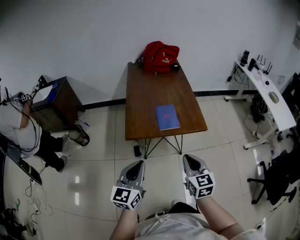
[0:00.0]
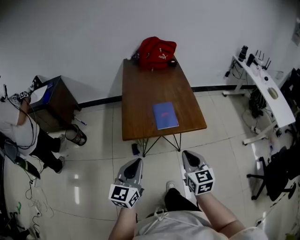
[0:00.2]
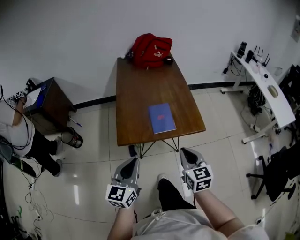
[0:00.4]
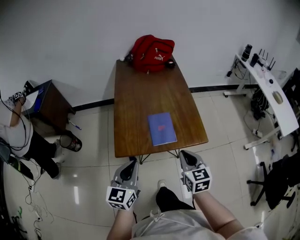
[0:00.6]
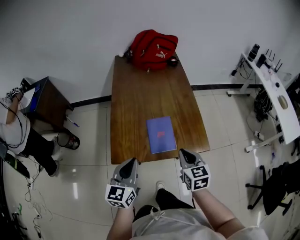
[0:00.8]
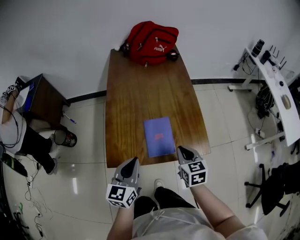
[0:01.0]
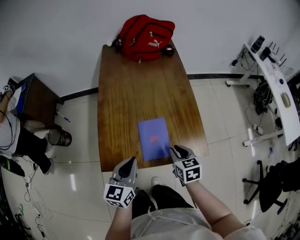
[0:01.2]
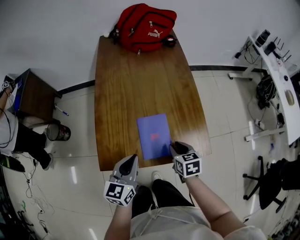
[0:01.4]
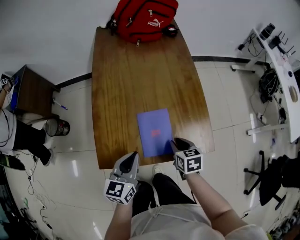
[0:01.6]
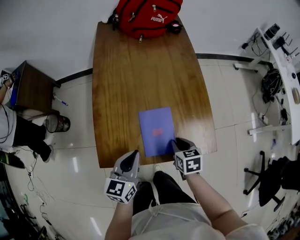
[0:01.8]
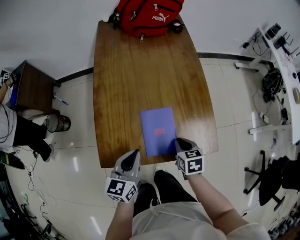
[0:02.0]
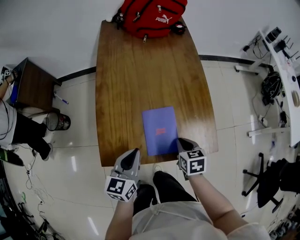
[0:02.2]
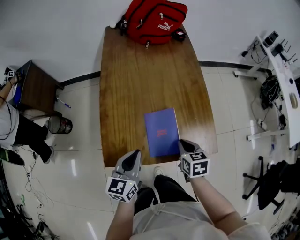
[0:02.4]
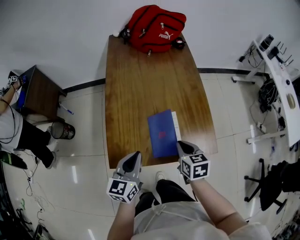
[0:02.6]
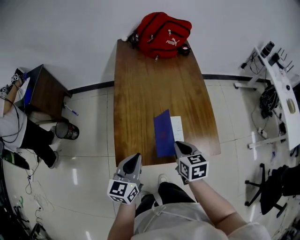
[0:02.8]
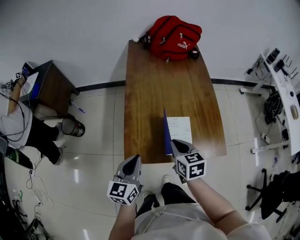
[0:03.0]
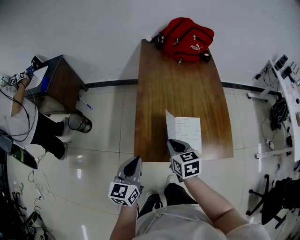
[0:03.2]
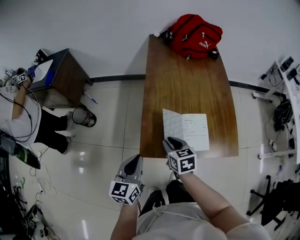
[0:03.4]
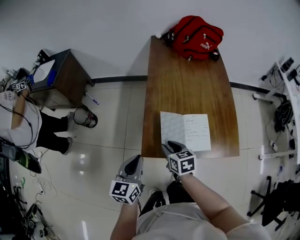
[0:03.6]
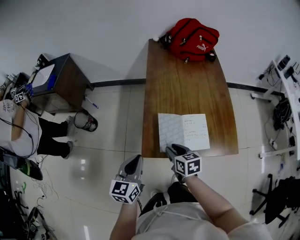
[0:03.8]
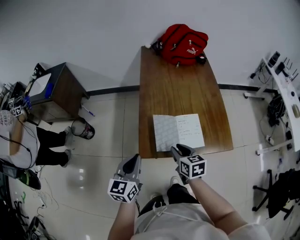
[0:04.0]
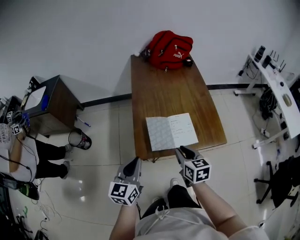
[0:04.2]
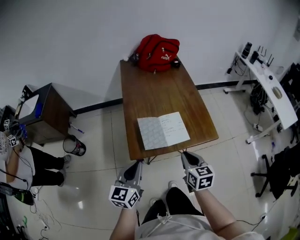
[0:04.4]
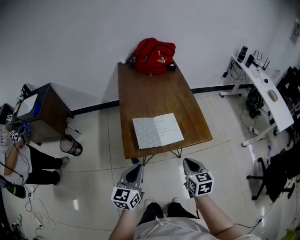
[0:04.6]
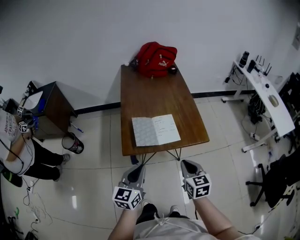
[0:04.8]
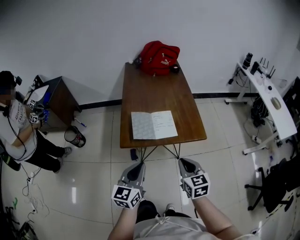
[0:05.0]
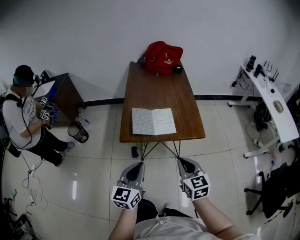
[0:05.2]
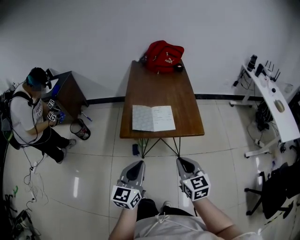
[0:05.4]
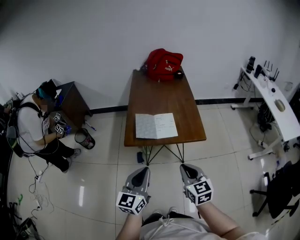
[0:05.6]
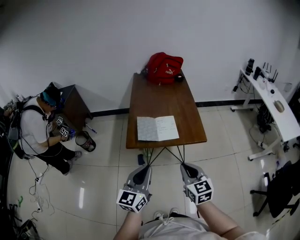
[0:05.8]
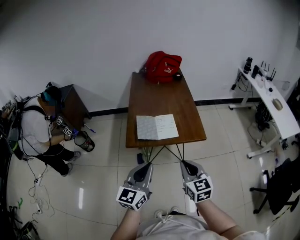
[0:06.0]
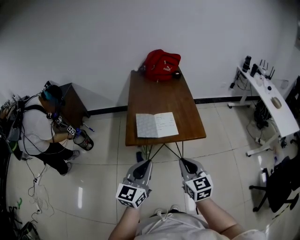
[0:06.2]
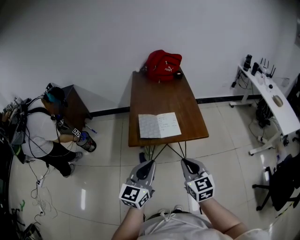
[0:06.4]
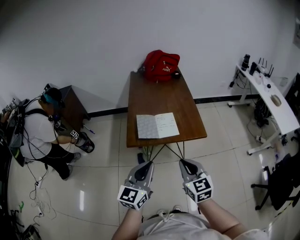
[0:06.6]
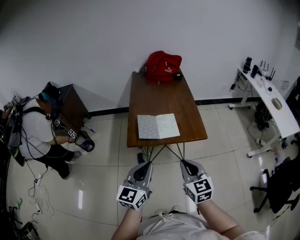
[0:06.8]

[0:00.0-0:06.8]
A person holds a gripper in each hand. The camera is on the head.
0.0 to 1.4 s: Both grippers move forward and downward, roughly 35 cm. The right gripper changes its angle by some 30 degrees, and opens up.
1.4 to 2.8 s: The left gripper shifts about 5 cm to the left. Meanwhile the right gripper moves upward and to the left, some 10 cm, and closes.
2.8 to 4.0 s: Both grippers travel together to the left, approximately 15 cm. The right gripper opens its fingers.
4.0 to 5.4 s: The left gripper goes approximately 30 cm backward and to the right. The right gripper moves backward, to the right and upward, approximately 35 cm, changes its angle by roughly 20 degrees, and closes up.
5.4 to 6.8 s: The right gripper ends up about 5 cm from where it was.

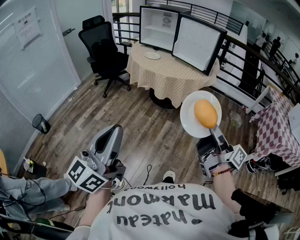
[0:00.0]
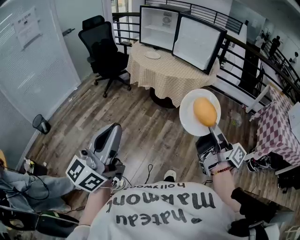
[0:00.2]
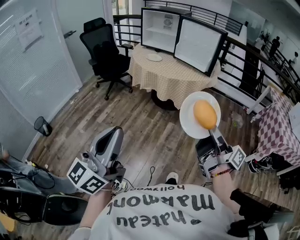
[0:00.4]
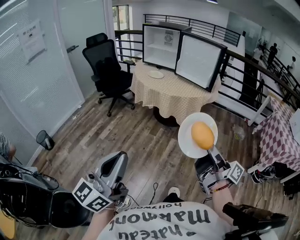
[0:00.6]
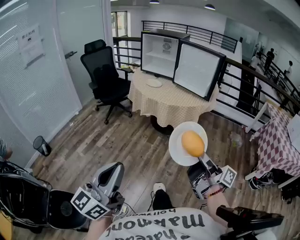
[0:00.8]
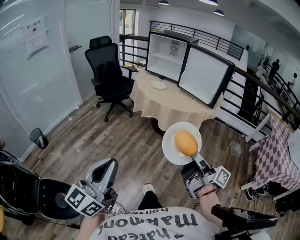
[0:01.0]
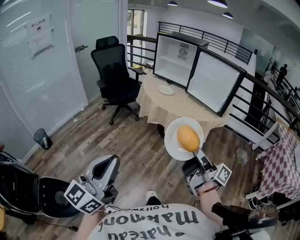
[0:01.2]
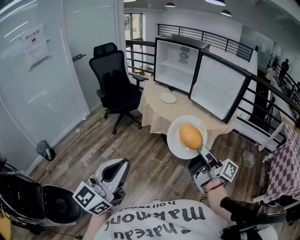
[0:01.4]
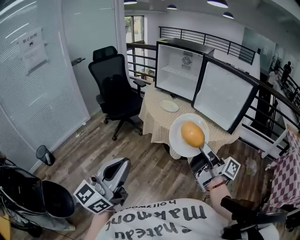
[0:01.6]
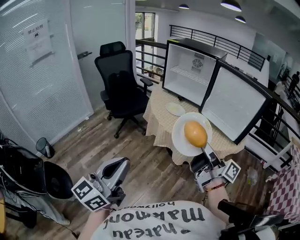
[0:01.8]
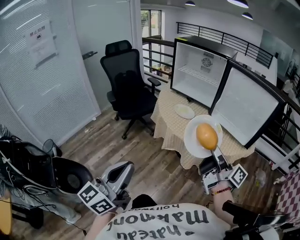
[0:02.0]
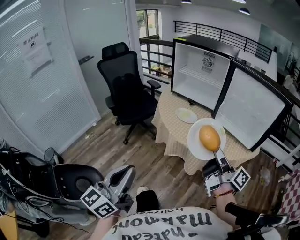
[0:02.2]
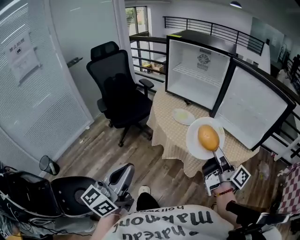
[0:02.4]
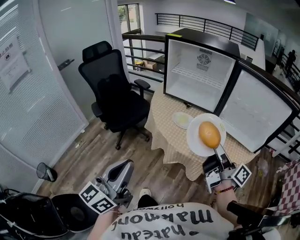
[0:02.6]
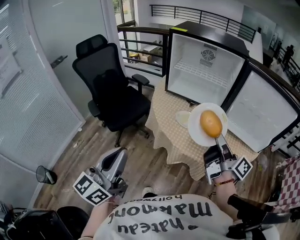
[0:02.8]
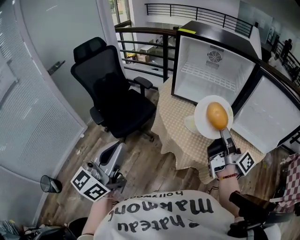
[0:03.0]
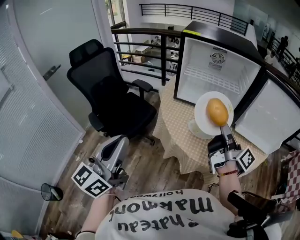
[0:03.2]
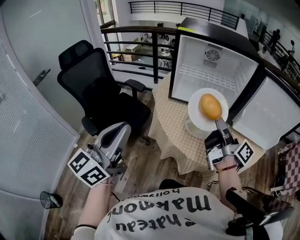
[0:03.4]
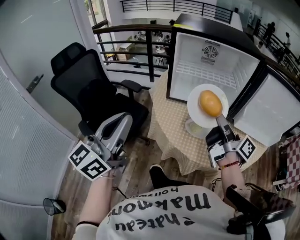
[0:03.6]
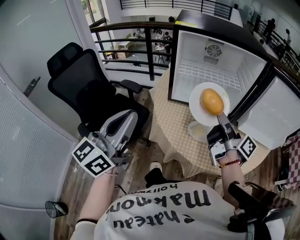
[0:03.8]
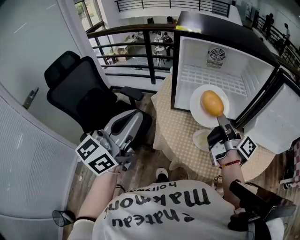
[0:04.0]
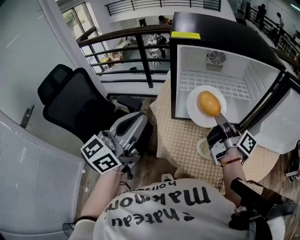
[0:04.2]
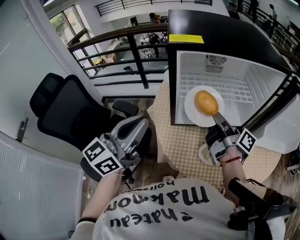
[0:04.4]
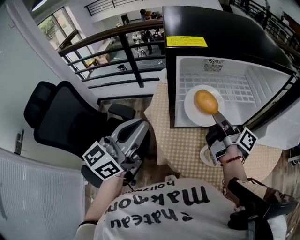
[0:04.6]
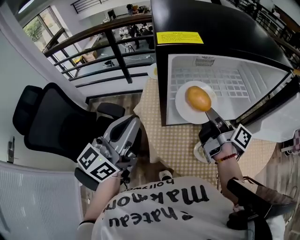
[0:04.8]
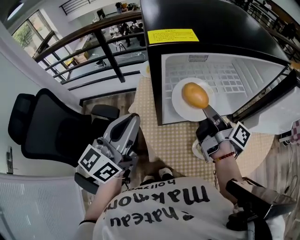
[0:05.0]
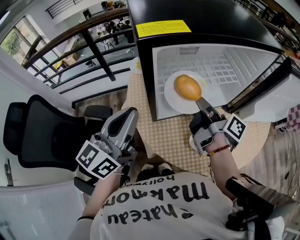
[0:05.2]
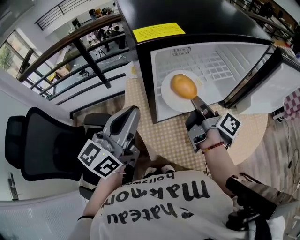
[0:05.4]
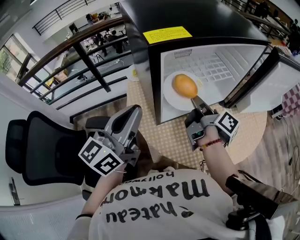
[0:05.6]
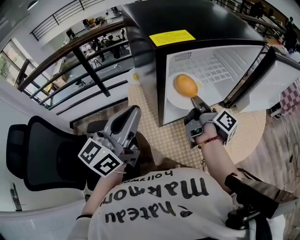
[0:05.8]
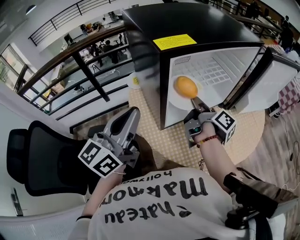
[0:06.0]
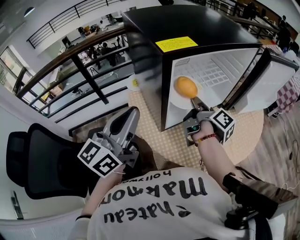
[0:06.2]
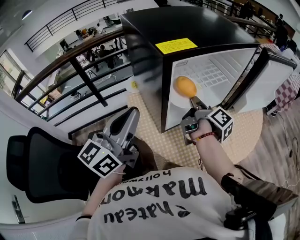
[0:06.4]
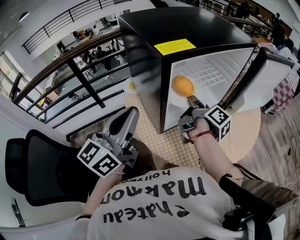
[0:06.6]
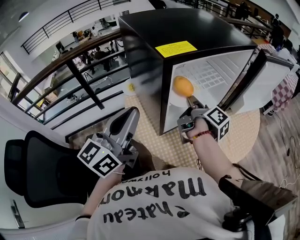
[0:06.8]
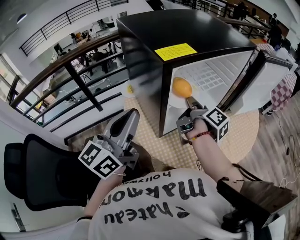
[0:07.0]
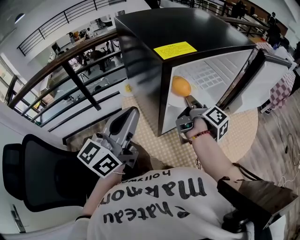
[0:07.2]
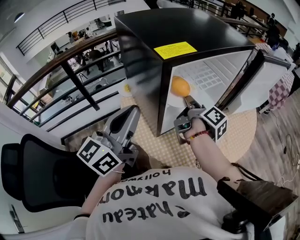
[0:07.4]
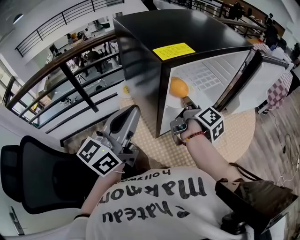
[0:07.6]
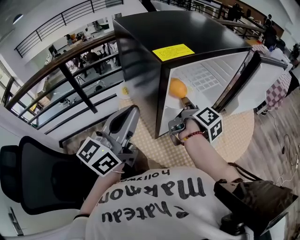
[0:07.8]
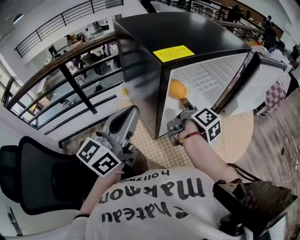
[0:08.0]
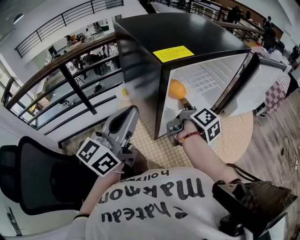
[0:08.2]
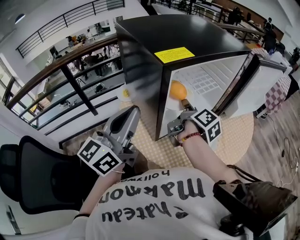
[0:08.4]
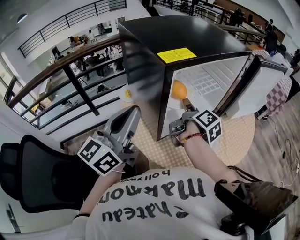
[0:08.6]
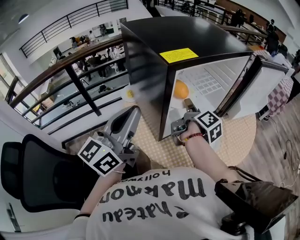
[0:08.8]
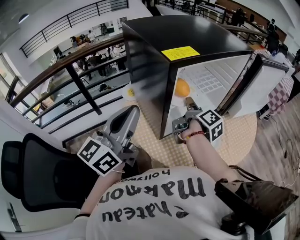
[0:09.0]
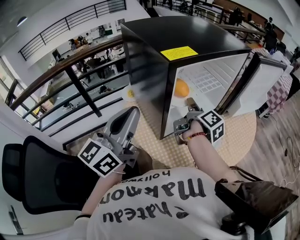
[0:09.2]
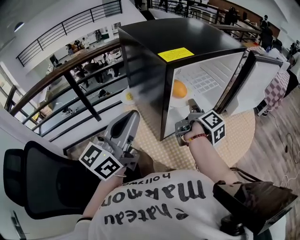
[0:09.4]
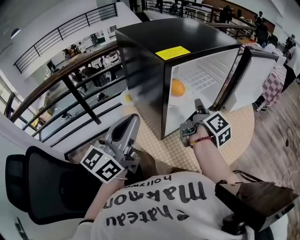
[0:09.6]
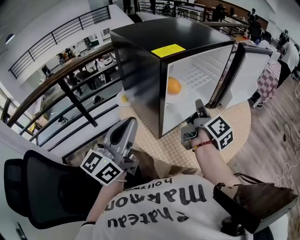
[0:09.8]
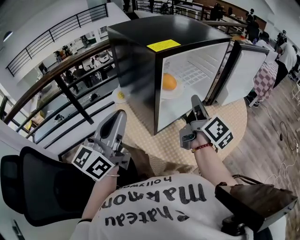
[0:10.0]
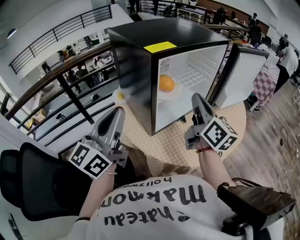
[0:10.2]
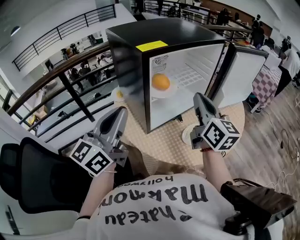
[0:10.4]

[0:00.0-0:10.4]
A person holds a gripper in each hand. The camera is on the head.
0.0 to 1.4 s: The right gripper shifts some 30 cm forward and to the left. The left gripper is displaced forward by some 20 cm.
1.4 to 3.0 s: The two grippers travel together, forward, roughly 50 cm. The right gripper turns by approximately 30 degrees.
3.0 to 4.4 s: The left gripper shifts approximately 40 cm forward, and swivels some 30 degrees. Meanwhile the right gripper shifts roughly 30 cm forward and to the left.
4.4 to 6.0 s: The left gripper is displaced forward by some 10 cm, while the right gripper changes its angle by some 40 degrees.
6.0 to 7.4 s: The grippers stay close to where they were, moving slightly.
7.4 to 9.0 s: The right gripper opens.
9.0 to 10.4 s: The right gripper shifts some 20 cm upward, backward and to the right, rotates around the line of its fingers by some 60 degrees, counterclockwise from behind, and closes up, while the left gripper shifts by some 5 cm.

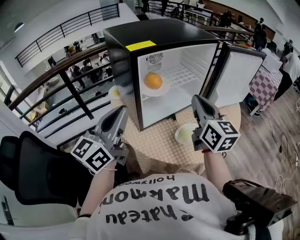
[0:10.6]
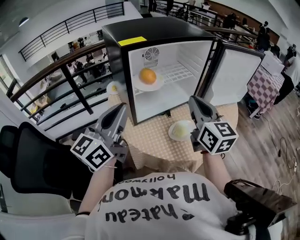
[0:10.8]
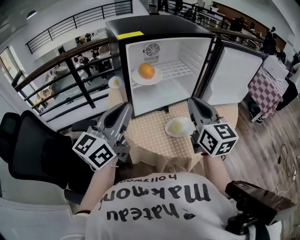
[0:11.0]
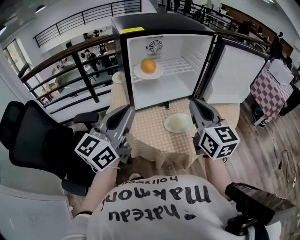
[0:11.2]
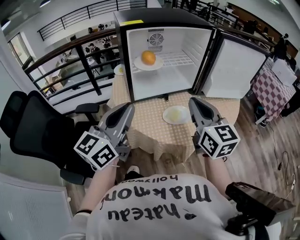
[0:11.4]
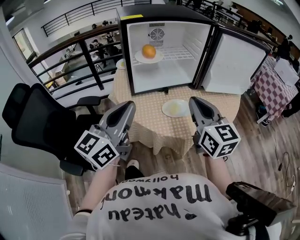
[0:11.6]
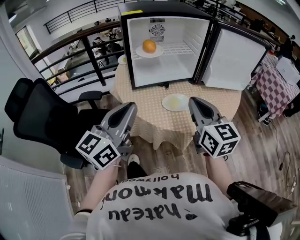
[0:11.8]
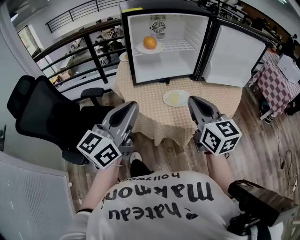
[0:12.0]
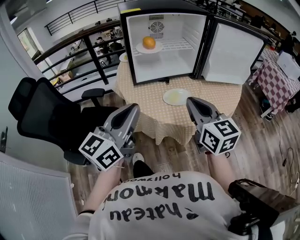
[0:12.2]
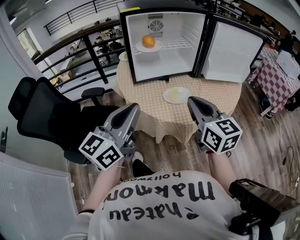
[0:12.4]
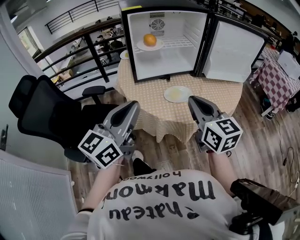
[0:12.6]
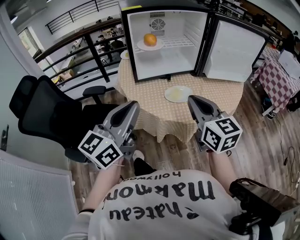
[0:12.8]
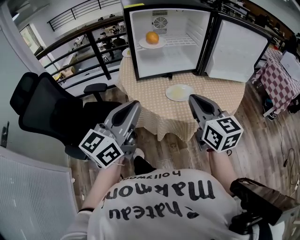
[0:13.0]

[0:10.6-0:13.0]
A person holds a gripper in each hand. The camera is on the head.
10.6 to 11.8 s: The two grippers go about 20 cm backward and to the right. The right gripper turns by some 20 degrees.
11.8 to 13.0 s: The grippers stay close to where they were, moving slightly.

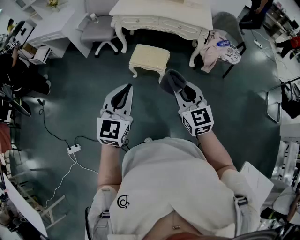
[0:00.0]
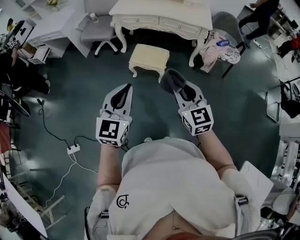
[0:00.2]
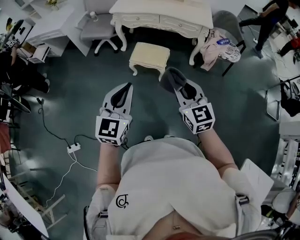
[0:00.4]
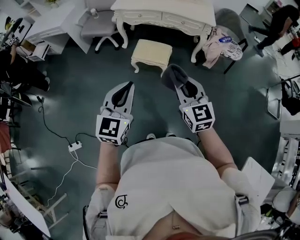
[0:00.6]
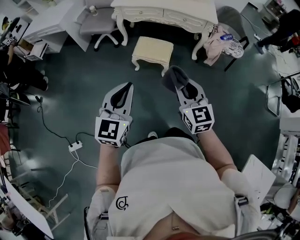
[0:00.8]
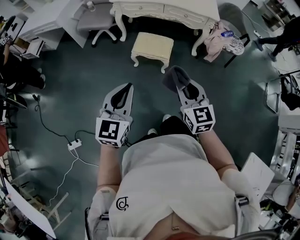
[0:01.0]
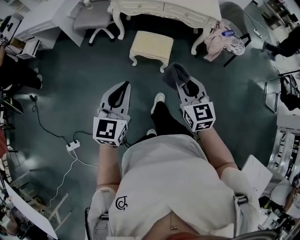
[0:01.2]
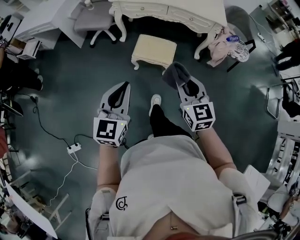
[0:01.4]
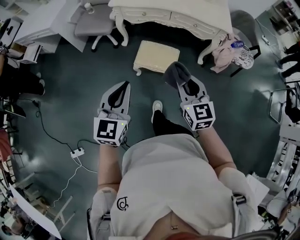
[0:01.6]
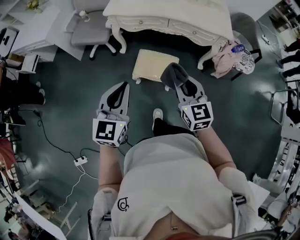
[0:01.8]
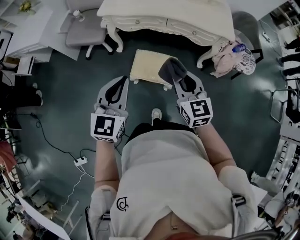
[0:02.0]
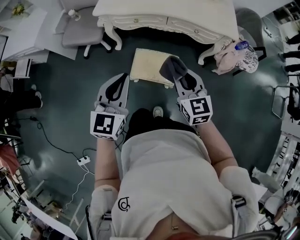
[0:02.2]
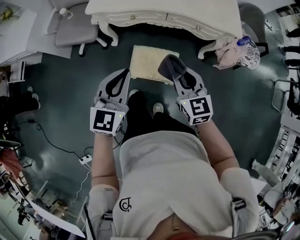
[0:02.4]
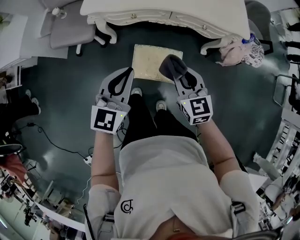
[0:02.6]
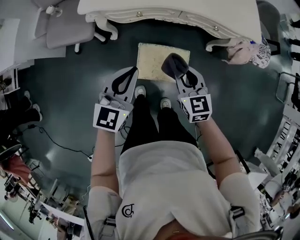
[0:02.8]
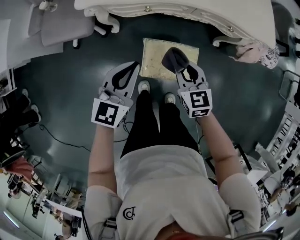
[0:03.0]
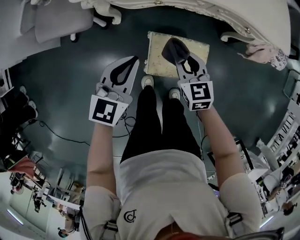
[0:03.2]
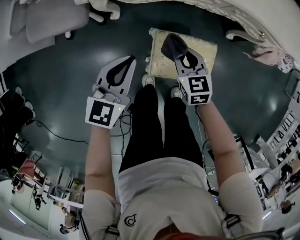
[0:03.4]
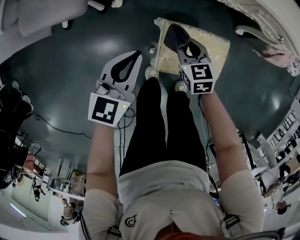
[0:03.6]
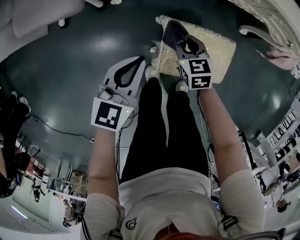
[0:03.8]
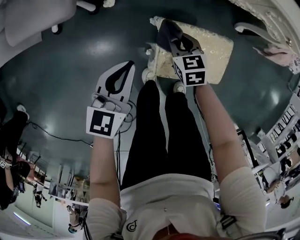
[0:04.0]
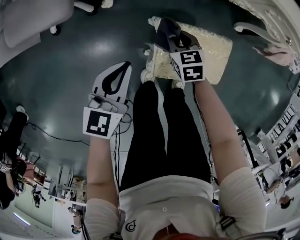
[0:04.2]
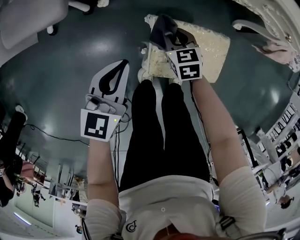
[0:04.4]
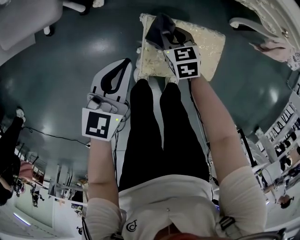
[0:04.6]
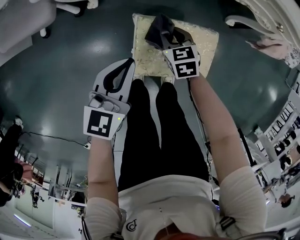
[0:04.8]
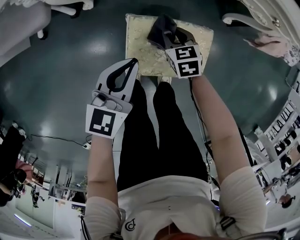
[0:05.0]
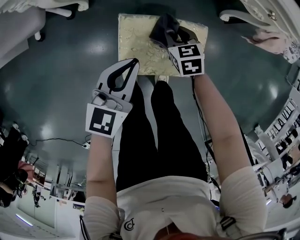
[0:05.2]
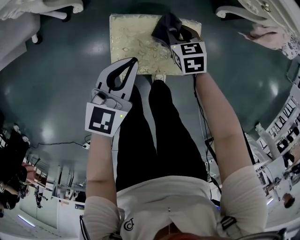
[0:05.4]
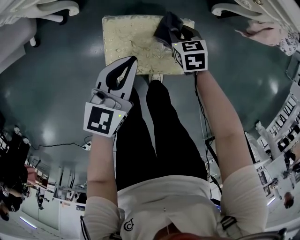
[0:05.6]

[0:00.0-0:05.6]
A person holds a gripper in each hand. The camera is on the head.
0.0 to 1.4 s: Both grippers travel together forward, to the left and downward, approximately 15 cm.
1.4 to 2.8 s: The two grippers travel together, forward, roughly 40 cm. The right gripper shifts approximately 15 cm downward.
2.8 to 4.2 s: The grippers both shift downward by some 35 cm. The right gripper rotates about 30 degrees.
4.2 to 5.6 s: Both grippers move to the right, roughly 20 cm.
